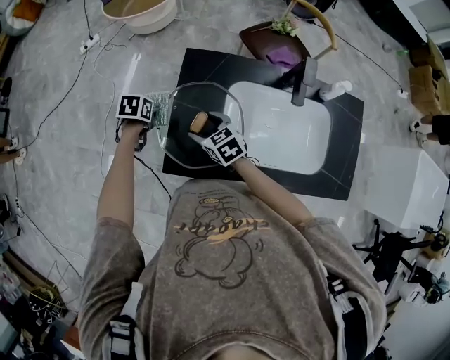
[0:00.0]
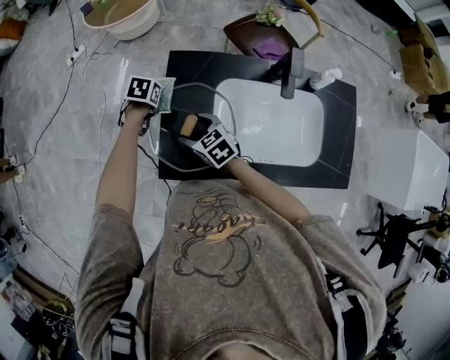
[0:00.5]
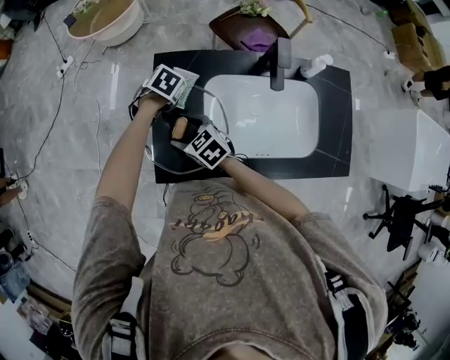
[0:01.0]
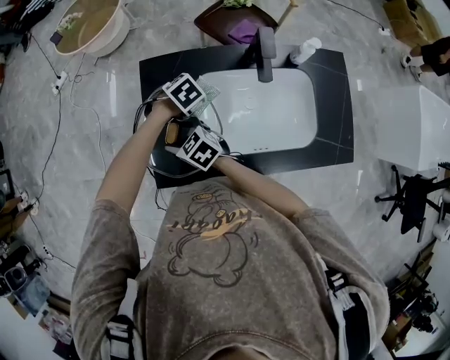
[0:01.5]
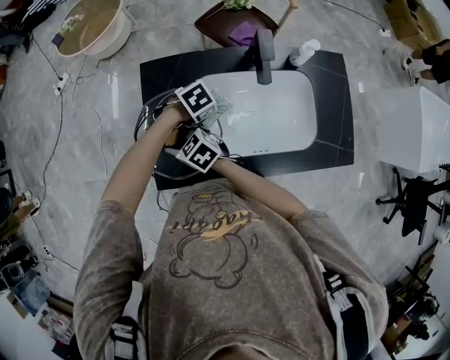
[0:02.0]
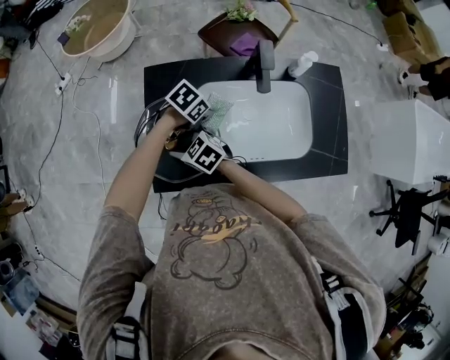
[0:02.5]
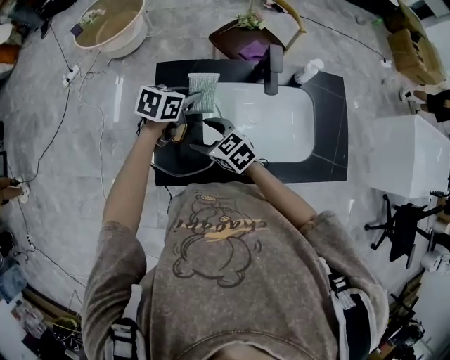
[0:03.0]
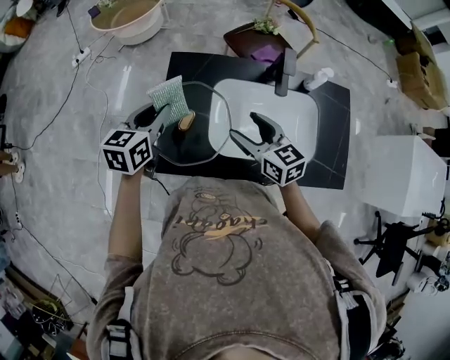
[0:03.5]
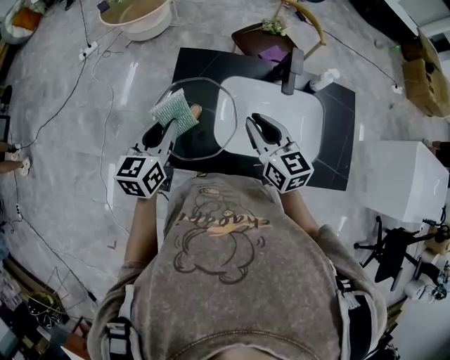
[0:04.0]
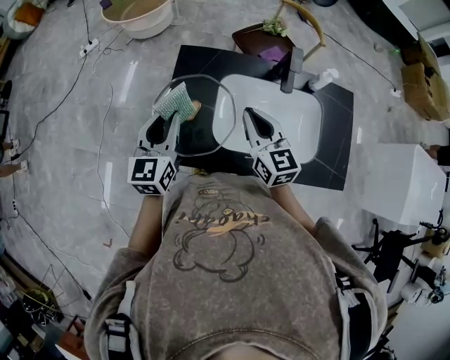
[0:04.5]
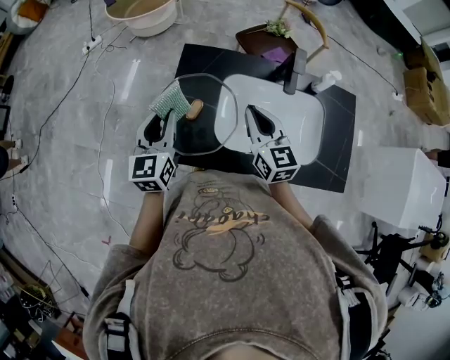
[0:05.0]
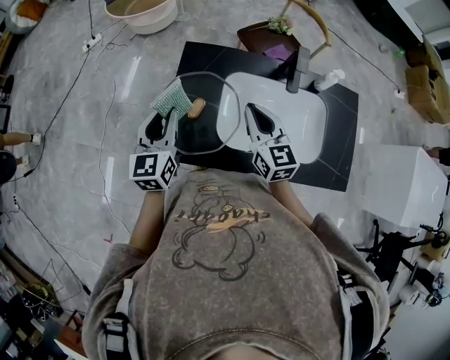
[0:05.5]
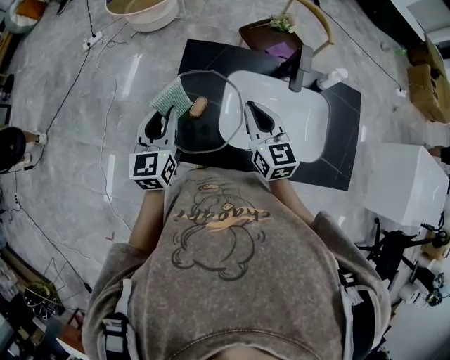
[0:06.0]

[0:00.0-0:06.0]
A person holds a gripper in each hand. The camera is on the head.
0:00.0 to 0:02.0: The left gripper moves approximately 30 cm, and rotates around the line of its fingers by roughly 60 degrees, clockwise from behind.
0:02.0 to 0:04.0: Both grippers move upward, approximately 20 cm. The left gripper angles its fingers upward, by some 50 degrees. Meanwhile the right gripper changes its angle by approximately 30 degrees, and closes.
0:04.0 to 0:06.0: The grippers move only a little.

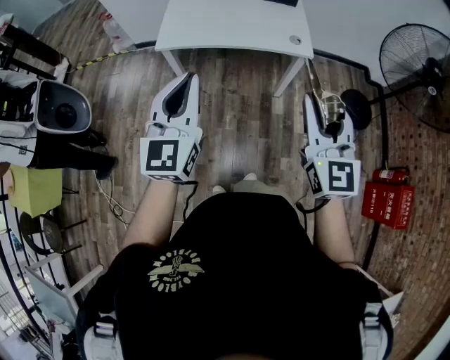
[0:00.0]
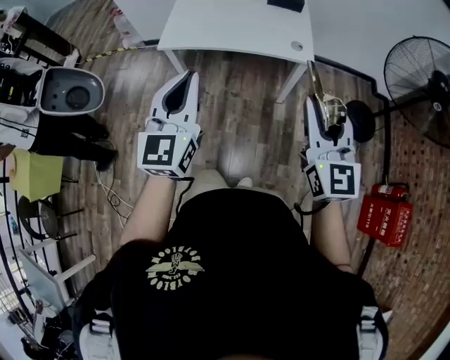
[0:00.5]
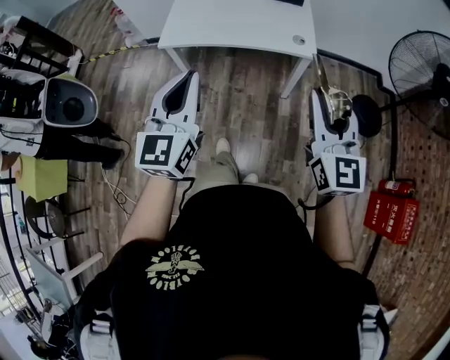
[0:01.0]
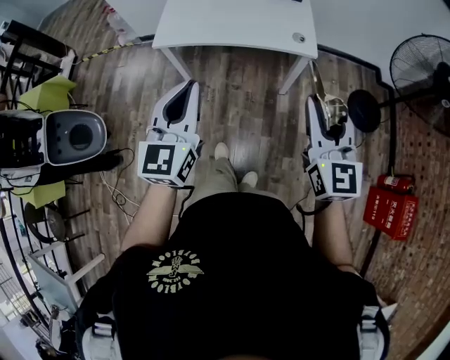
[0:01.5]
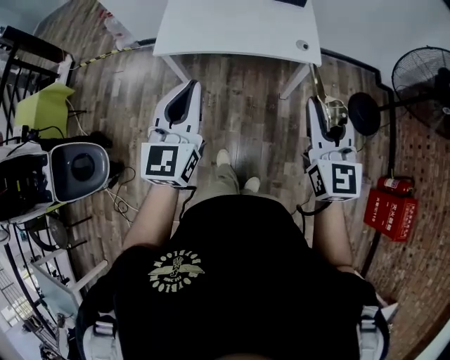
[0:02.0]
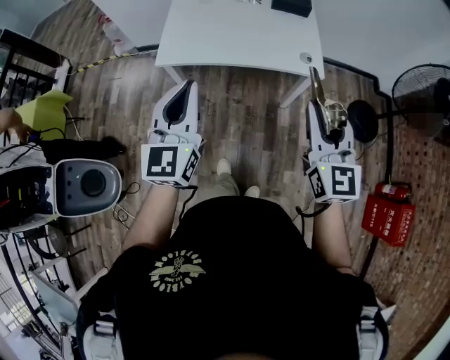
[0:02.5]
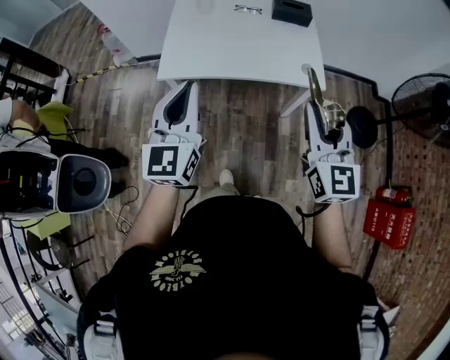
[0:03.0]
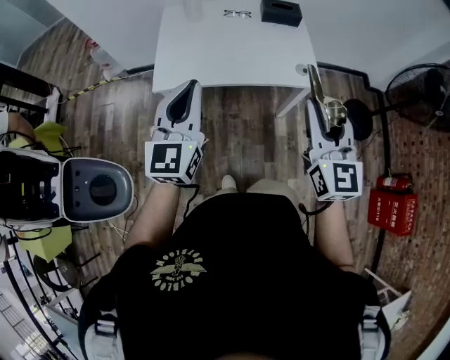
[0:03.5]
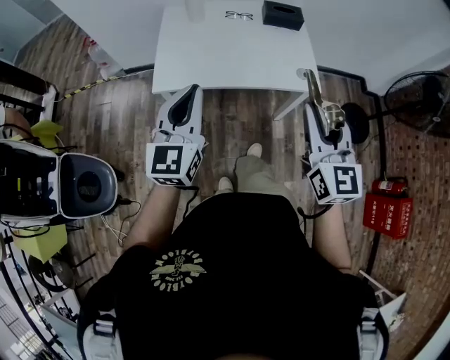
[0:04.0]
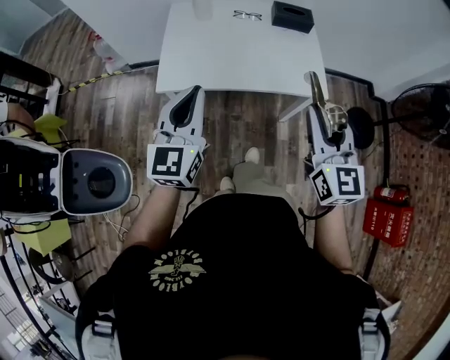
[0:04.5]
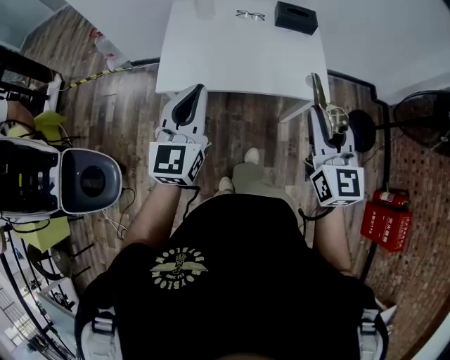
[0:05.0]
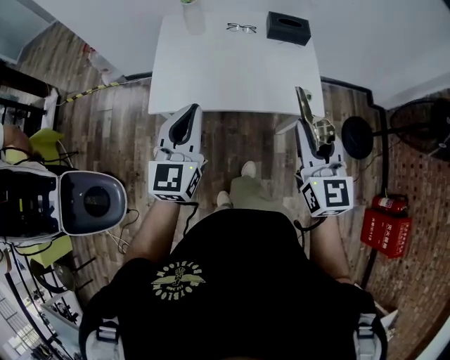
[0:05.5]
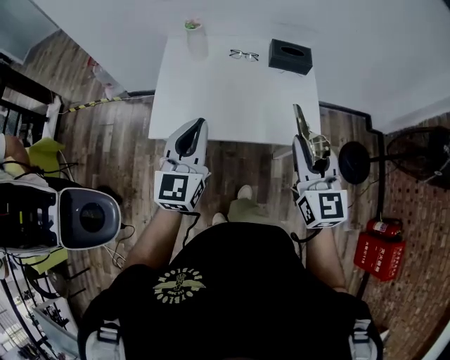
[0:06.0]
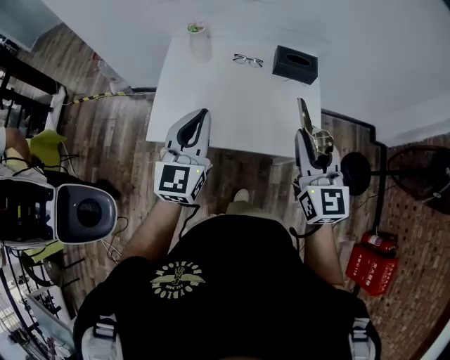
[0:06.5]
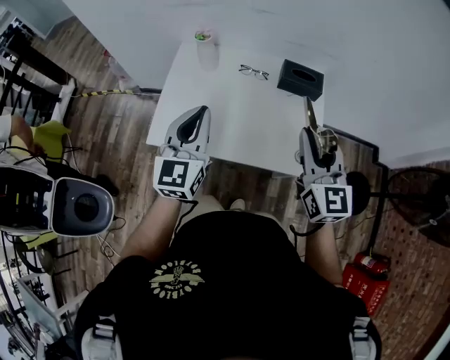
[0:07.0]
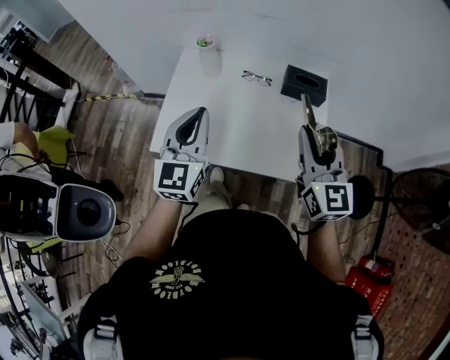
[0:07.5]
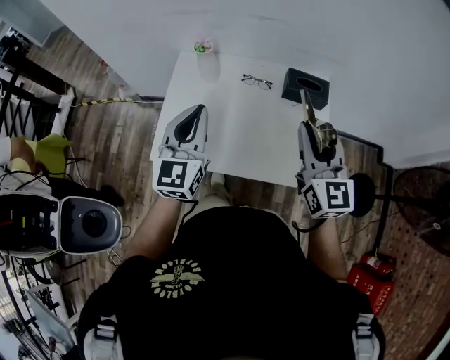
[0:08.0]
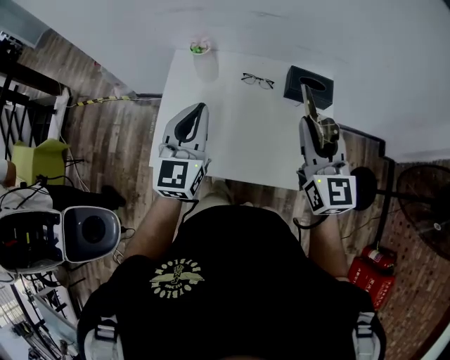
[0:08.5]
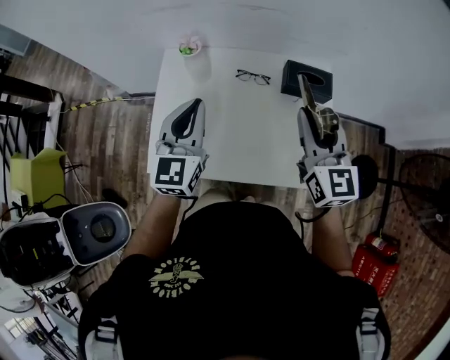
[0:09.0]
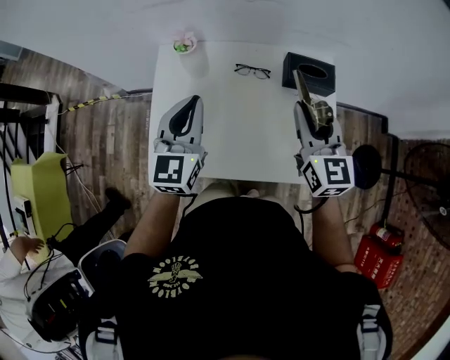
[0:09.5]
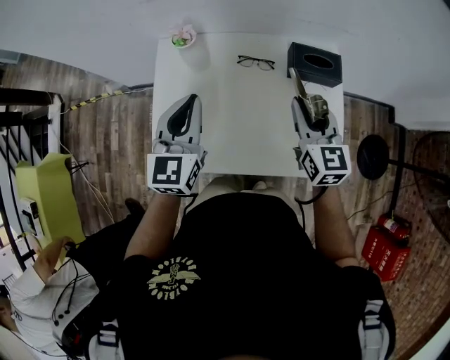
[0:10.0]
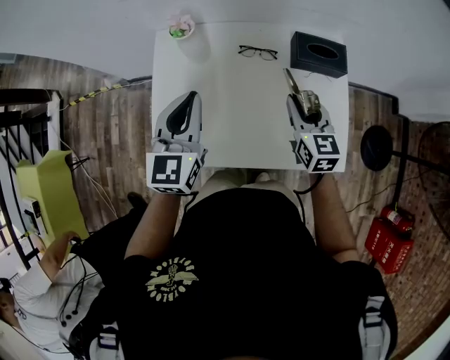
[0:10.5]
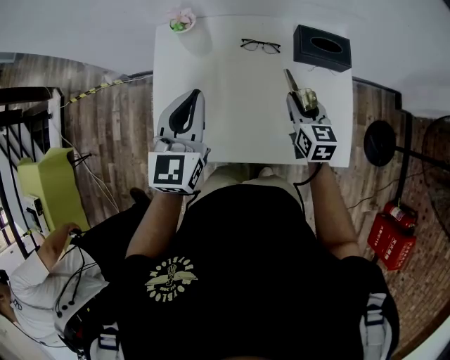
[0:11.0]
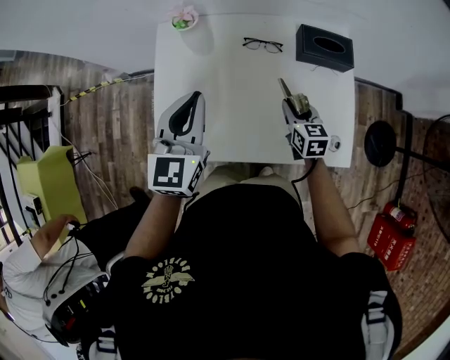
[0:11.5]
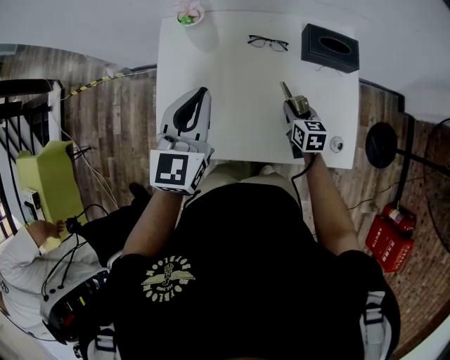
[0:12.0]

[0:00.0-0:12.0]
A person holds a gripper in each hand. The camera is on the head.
0:00.0 to 0:02.0: The grippers both shift forward by some 10 cm.
0:02.0 to 0:04.0: Both grippers move forward and to the left, about 15 cm.
0:04.0 to 0:06.0: Both grippers move forward, some 15 cm.
0:06.0 to 0:08.0: Both grippers travel together forward, roughly 20 cm.
0:08.0 to 0:10.0: Both grippers travel together forward and downward, about 15 cm.
0:10.0 to 0:12.0: The right gripper shifts approximately 25 cm downward, and rotates approximately 30 degrees.

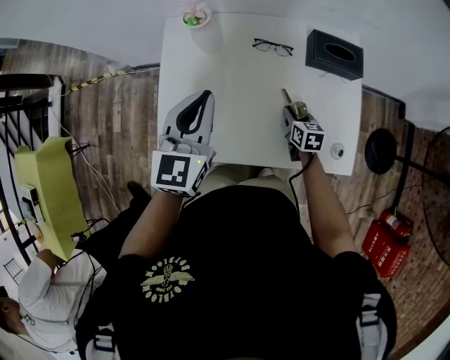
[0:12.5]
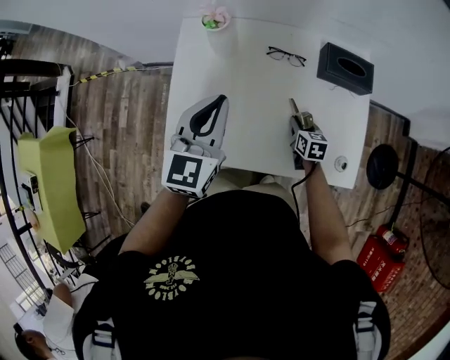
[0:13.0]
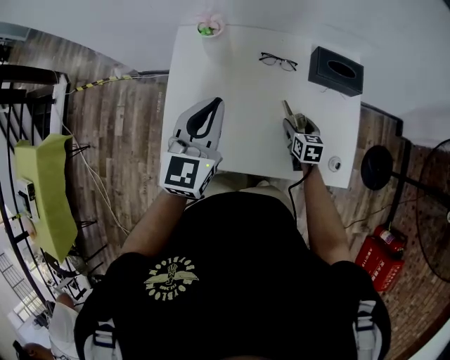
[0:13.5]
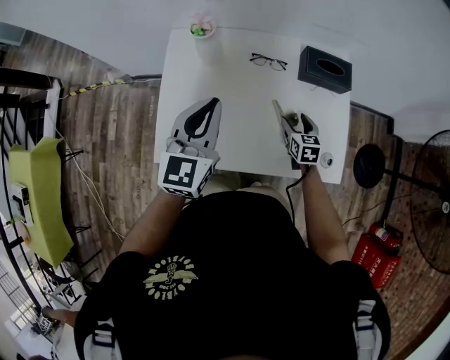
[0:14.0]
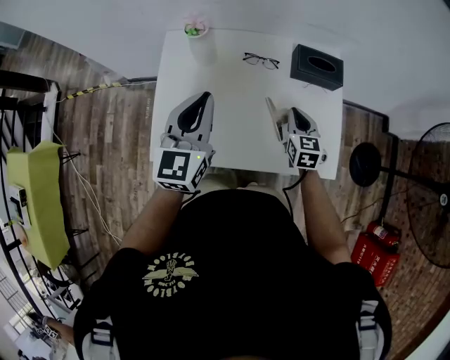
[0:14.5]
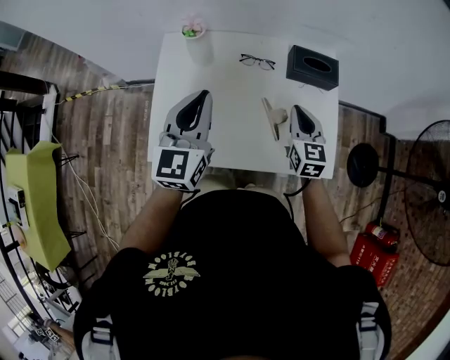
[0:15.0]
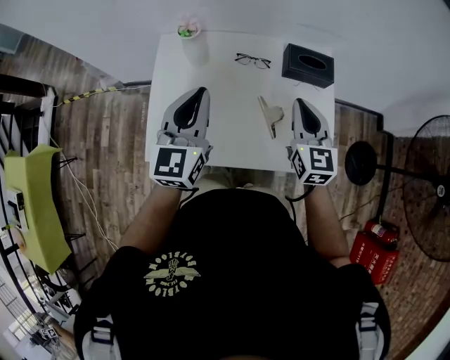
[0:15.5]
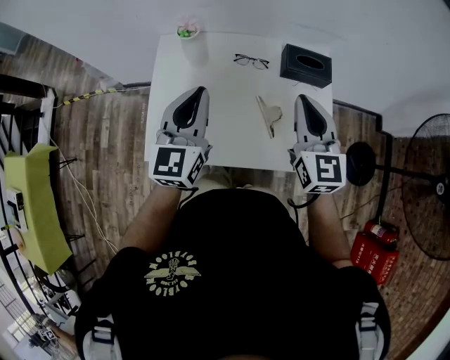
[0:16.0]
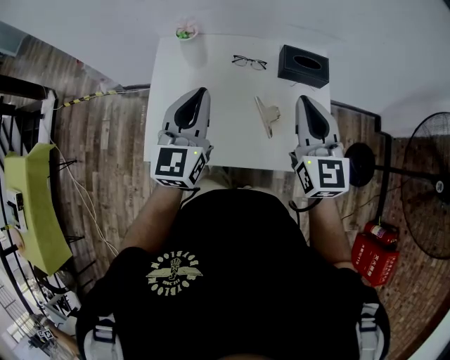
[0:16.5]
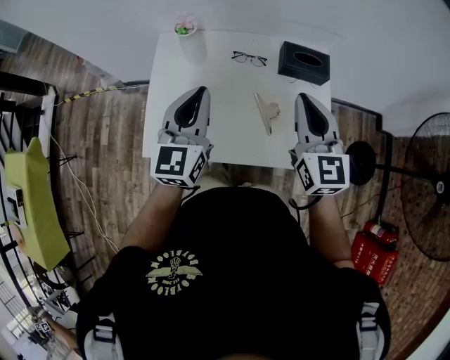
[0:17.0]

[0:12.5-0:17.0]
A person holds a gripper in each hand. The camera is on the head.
0:12.5 to 0:14.5: The right gripper moves upward, some 15 cm, changes its angle by about 20 degrees, and closes up.
0:14.5 to 0:17.0: The right gripper moves upward, some 25 cm, and rotates roughly 20 degrees.

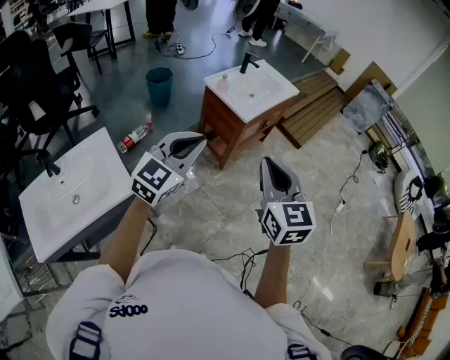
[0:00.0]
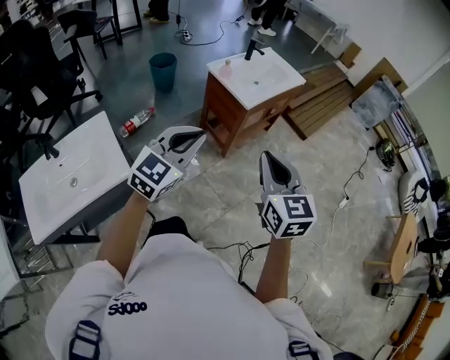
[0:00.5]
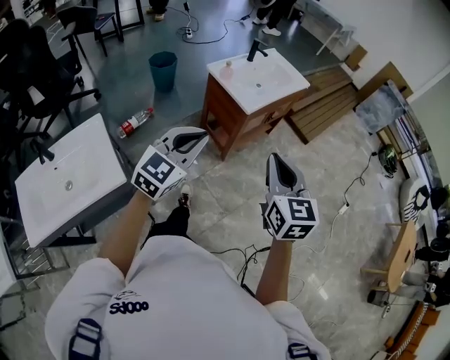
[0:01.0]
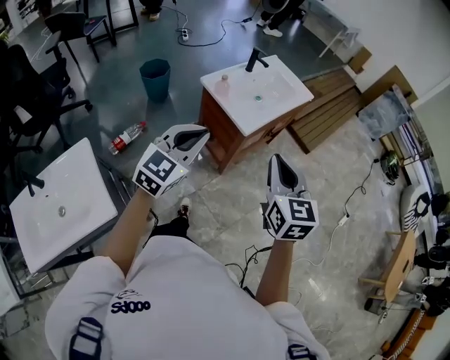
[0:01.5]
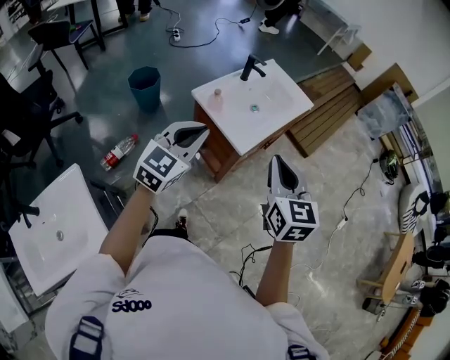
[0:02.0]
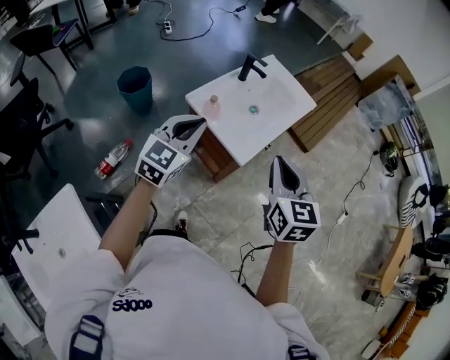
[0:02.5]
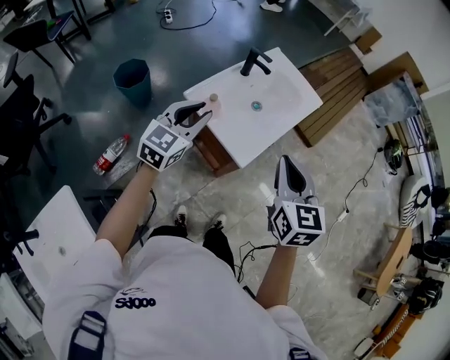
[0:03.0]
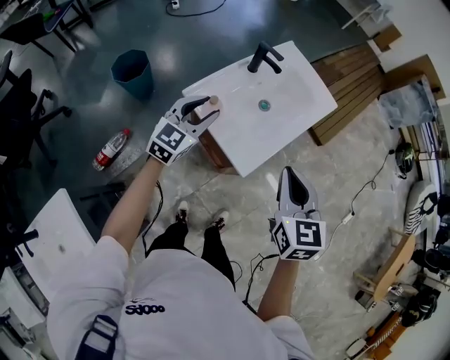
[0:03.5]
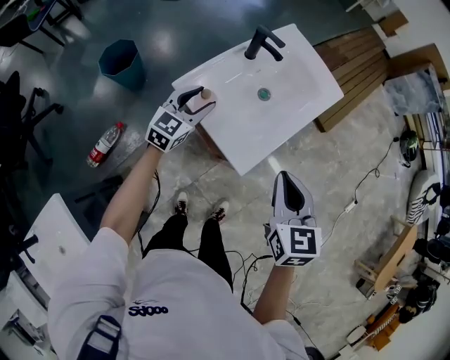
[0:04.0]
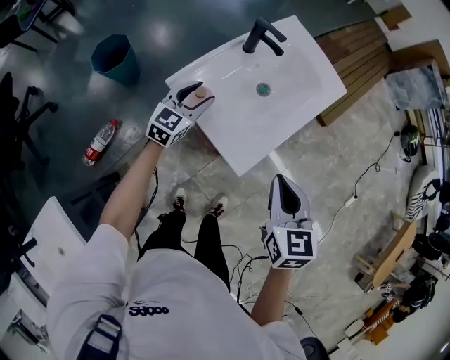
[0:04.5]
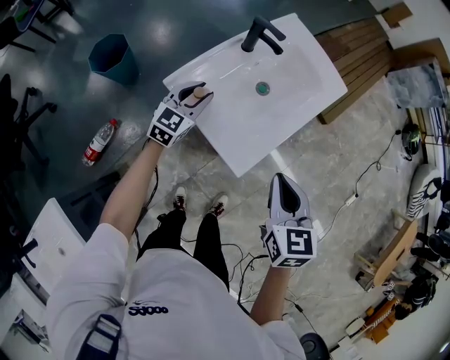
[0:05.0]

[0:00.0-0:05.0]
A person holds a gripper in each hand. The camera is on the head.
0:00.0 to 0:02.5: Both grippers travel together forward, about 40 cm.
0:02.5 to 0:05.0: The left gripper shifts roughly 30 cm downward and forward, and opens up. The right gripper goes approximately 15 cm downward and forward.
